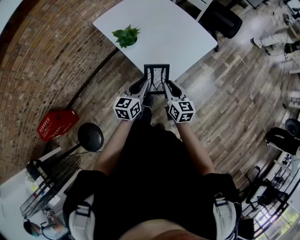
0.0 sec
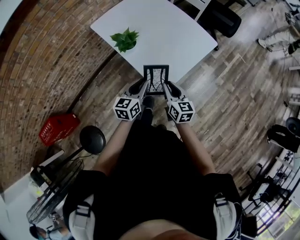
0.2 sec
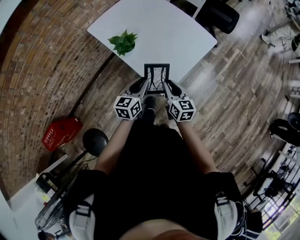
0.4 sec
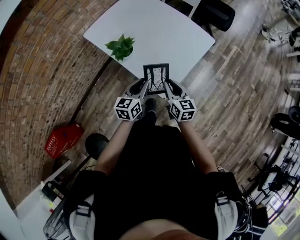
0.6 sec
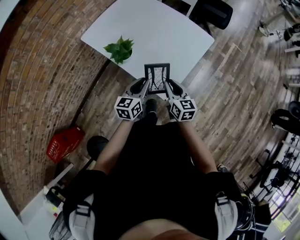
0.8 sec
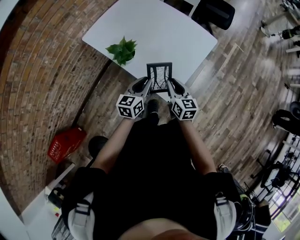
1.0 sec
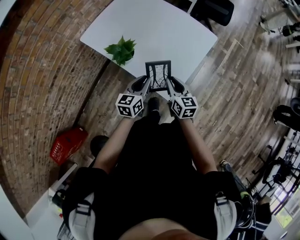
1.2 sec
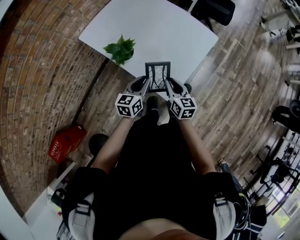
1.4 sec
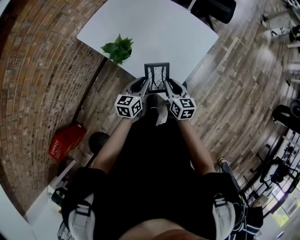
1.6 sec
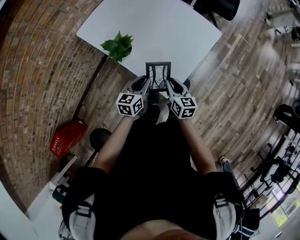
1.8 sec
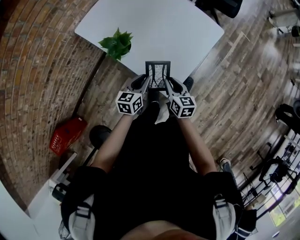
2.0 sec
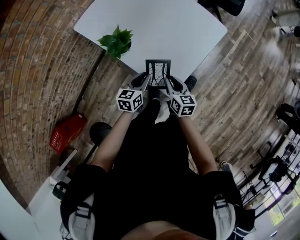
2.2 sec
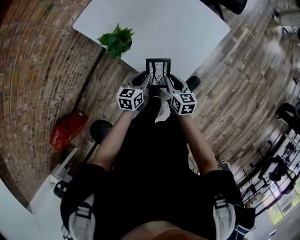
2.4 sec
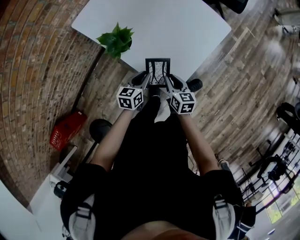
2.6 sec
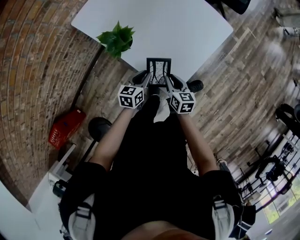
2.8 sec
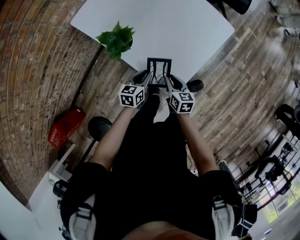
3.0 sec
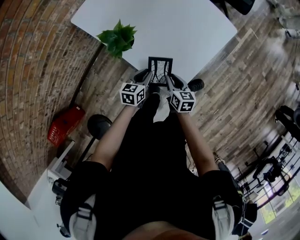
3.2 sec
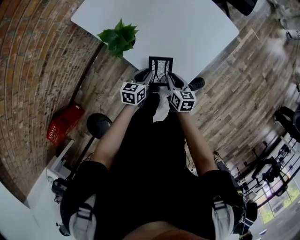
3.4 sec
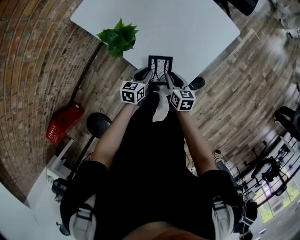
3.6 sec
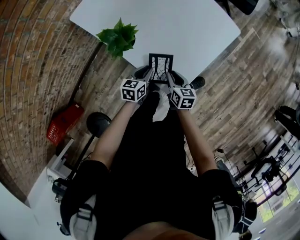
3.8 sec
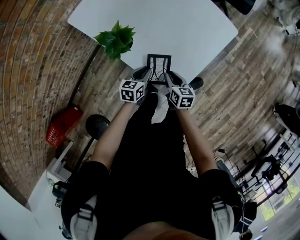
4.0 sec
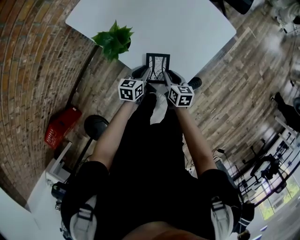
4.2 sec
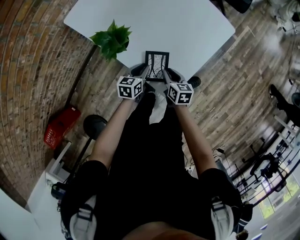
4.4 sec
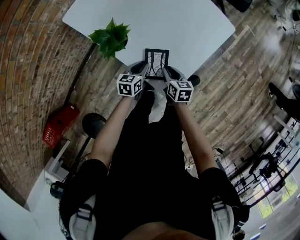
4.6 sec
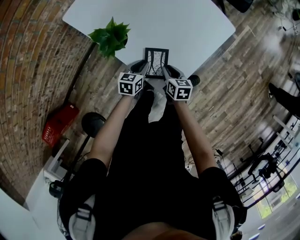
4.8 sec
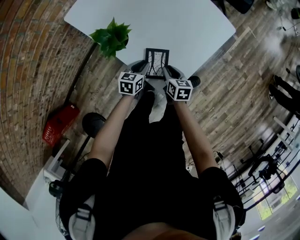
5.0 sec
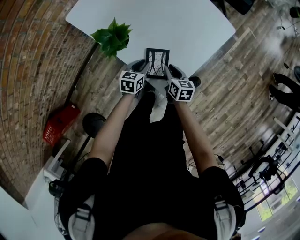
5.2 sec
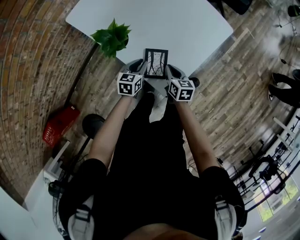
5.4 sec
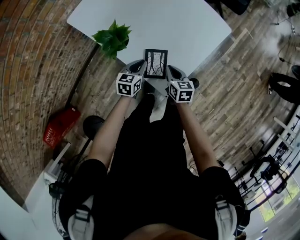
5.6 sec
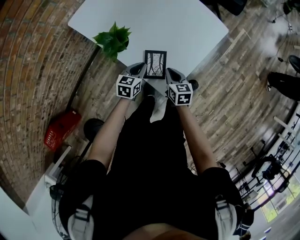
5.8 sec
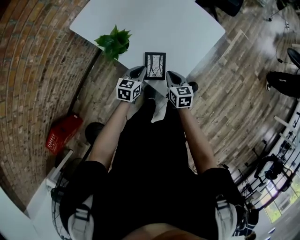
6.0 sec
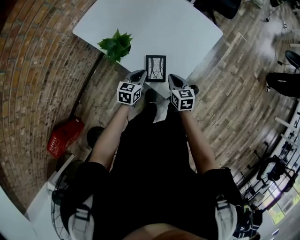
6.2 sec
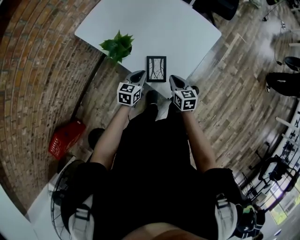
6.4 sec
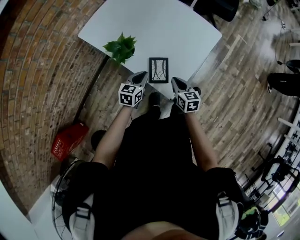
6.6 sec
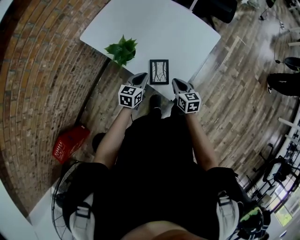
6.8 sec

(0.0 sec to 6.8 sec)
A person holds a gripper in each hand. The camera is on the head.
0.0 sec - 1.4 sec: Both grippers travel together forward and downward, some 10 cm.
1.4 sec - 2.8 sec: The grippers both shift downward by approximately 10 cm.
2.8 sec - 4.0 sec: The left gripper shifts by some 5 cm. Meanwhile the right gripper ends up about 5 cm from where it was.
4.0 sec - 5.4 sec: The grippers move only a little.
5.4 sec - 6.8 sec: The left gripper moves upward, about 10 cm, while the right gripper goes roughly 10 cm upward and backward.

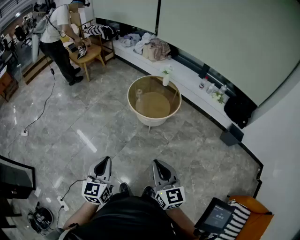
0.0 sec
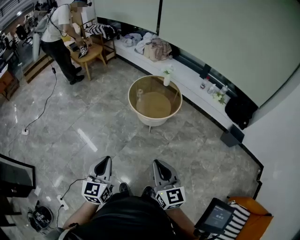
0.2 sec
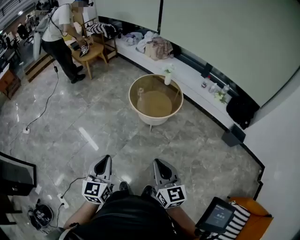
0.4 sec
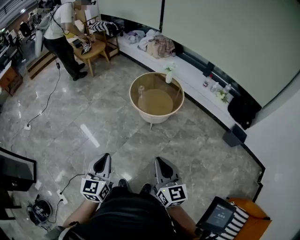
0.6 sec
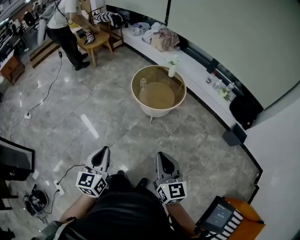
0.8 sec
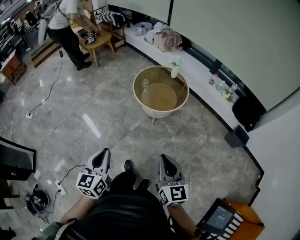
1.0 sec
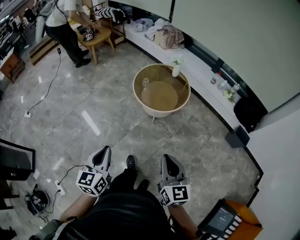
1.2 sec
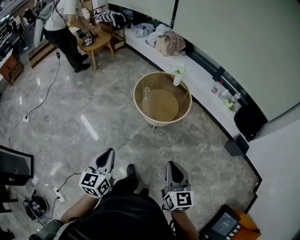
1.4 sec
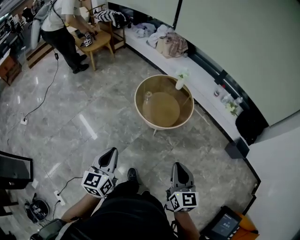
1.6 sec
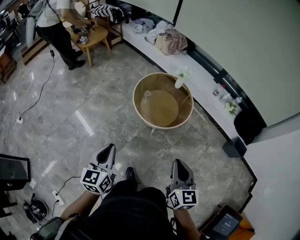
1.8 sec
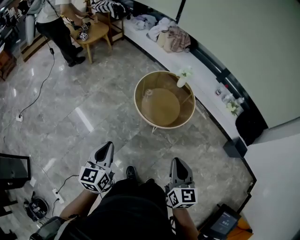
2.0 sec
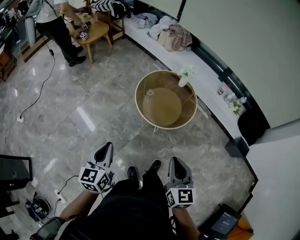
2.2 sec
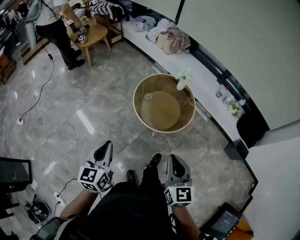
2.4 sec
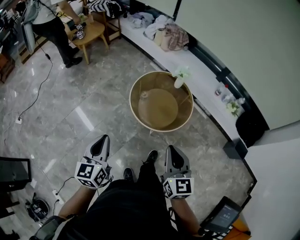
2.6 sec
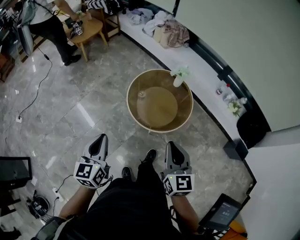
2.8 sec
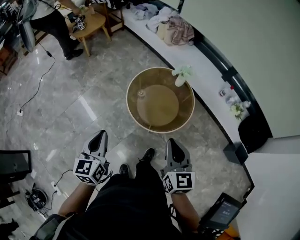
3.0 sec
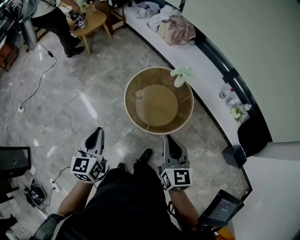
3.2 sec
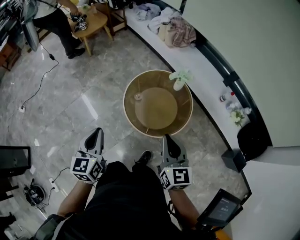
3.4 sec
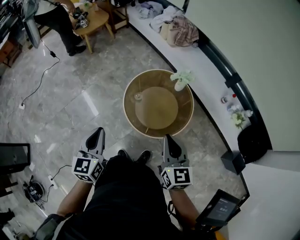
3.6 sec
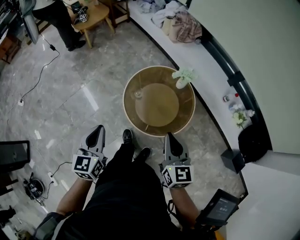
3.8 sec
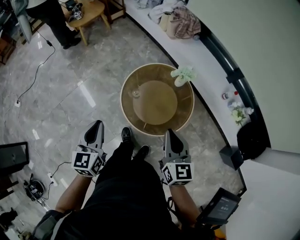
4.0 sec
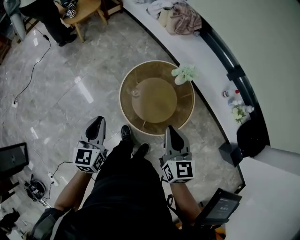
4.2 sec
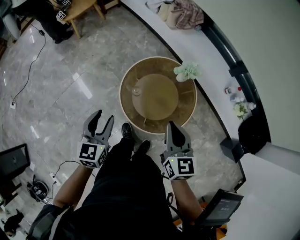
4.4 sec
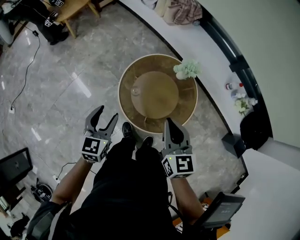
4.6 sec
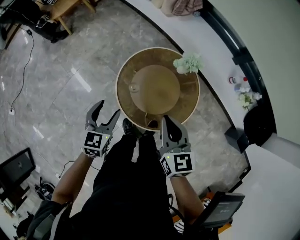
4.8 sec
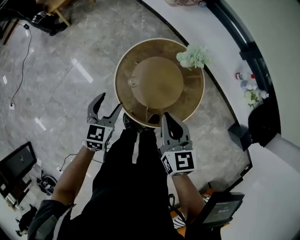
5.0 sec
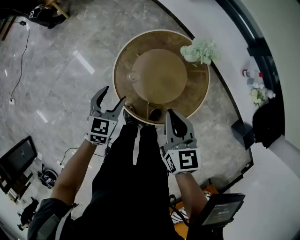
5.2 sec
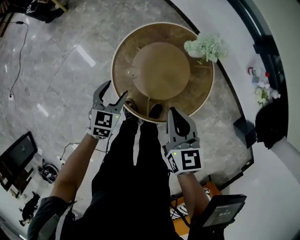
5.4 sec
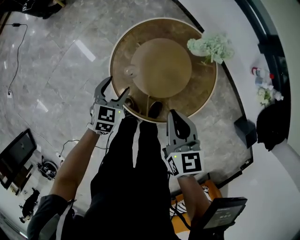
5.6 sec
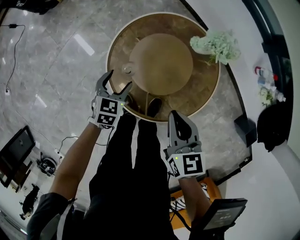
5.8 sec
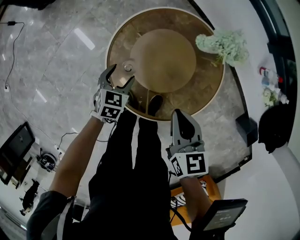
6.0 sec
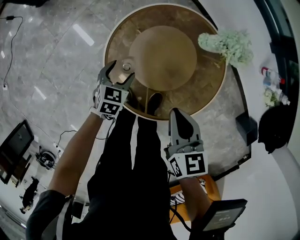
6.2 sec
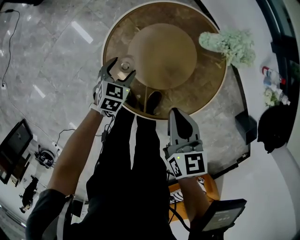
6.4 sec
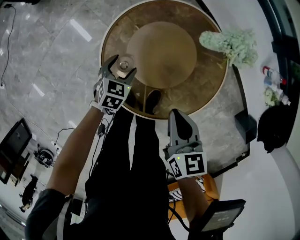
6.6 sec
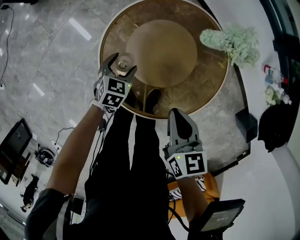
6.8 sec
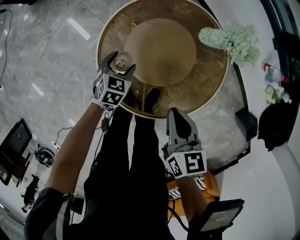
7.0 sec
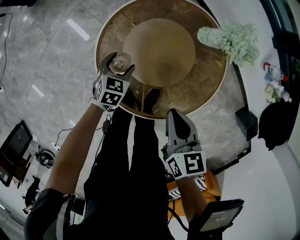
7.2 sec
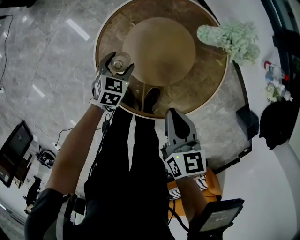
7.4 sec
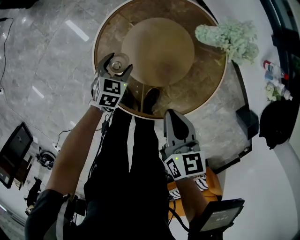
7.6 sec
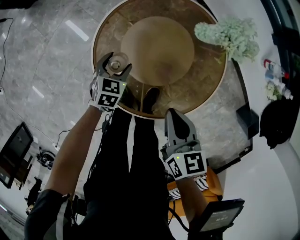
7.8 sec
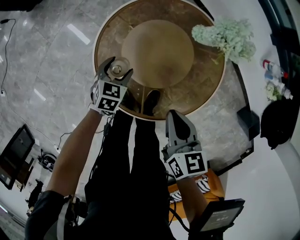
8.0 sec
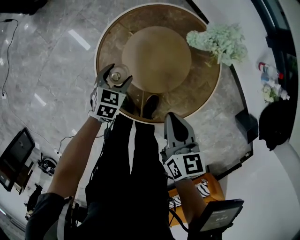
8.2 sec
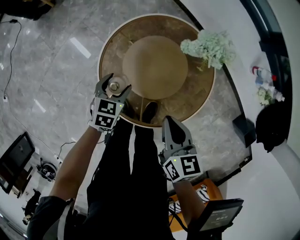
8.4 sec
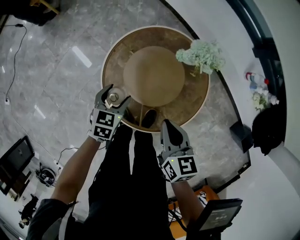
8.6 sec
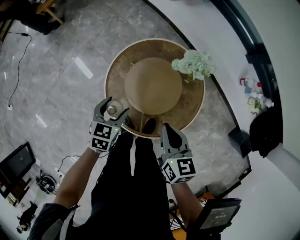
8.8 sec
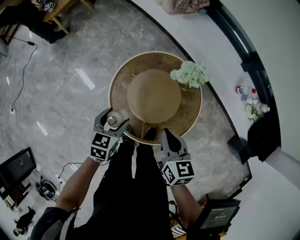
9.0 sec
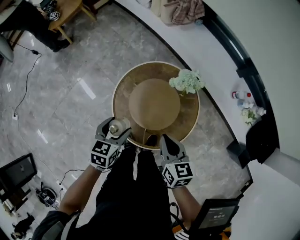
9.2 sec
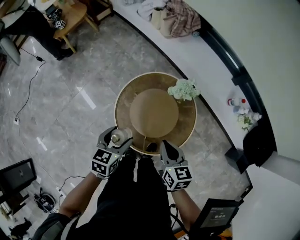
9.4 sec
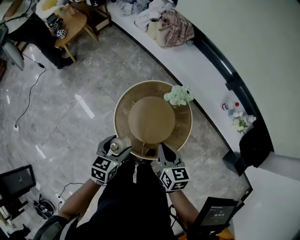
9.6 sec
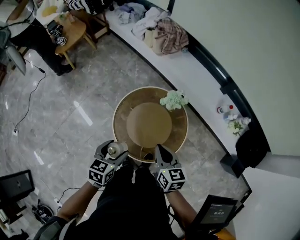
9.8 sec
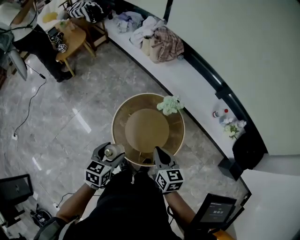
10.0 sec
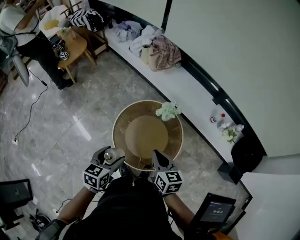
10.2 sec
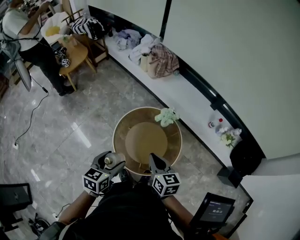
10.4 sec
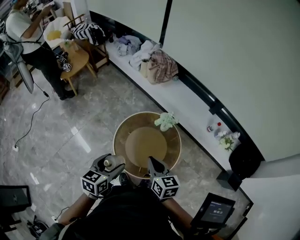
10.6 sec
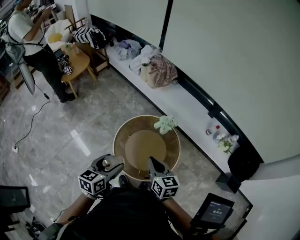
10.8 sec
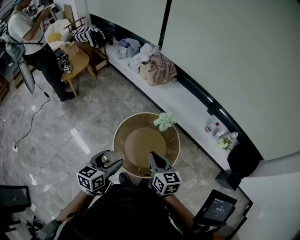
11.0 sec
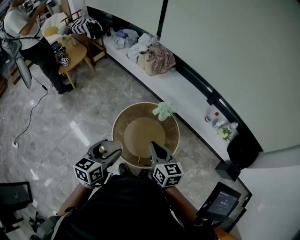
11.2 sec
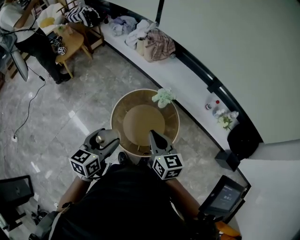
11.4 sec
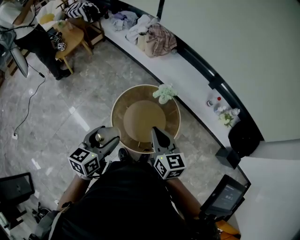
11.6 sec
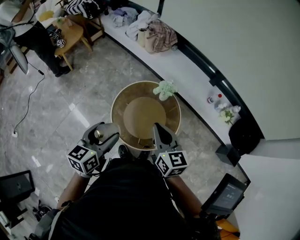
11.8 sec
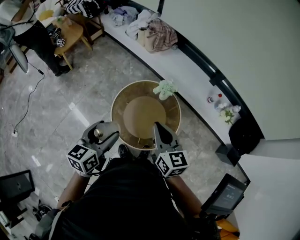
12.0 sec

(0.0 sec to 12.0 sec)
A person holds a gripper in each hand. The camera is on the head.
0.0 sec - 1.6 sec: The two grippers go approximately 20 cm forward.
1.6 sec - 3.0 sec: Both grippers travel together forward, approximately 25 cm.
3.0 sec - 4.4 sec: The left gripper goes about 20 cm forward and downward, and opens up. The right gripper travels forward by approximately 20 cm.
4.4 sec - 6.0 sec: The right gripper travels downward by some 25 cm, and changes its angle by approximately 20 degrees; the left gripper goes roughly 40 cm downward, swivels approximately 30 degrees, and opens its fingers.
6.0 sec - 7.6 sec: Both grippers move downward, some 5 cm.
7.6 sec - 9.0 sec: The right gripper travels upward by approximately 15 cm. The left gripper is displaced upward by some 25 cm.
9.0 sec - 10.4 sec: The right gripper is displaced upward by about 15 cm. Meanwhile the left gripper goes about 25 cm upward and backward.
10.4 sec - 12.0 sec: The grippers both shift upward by some 10 cm.

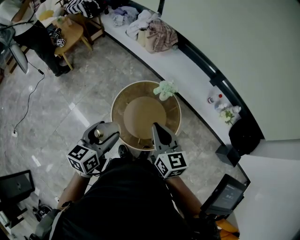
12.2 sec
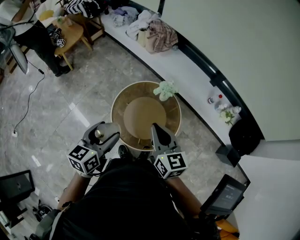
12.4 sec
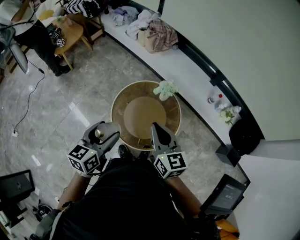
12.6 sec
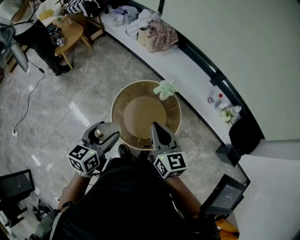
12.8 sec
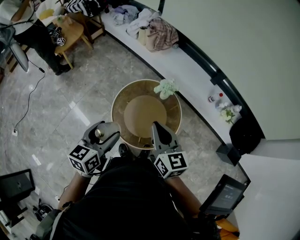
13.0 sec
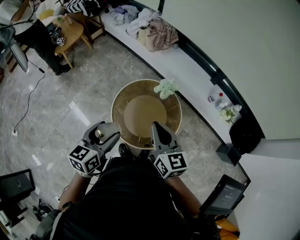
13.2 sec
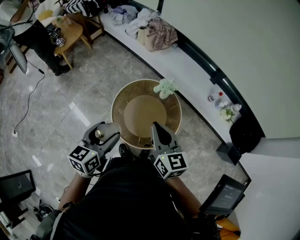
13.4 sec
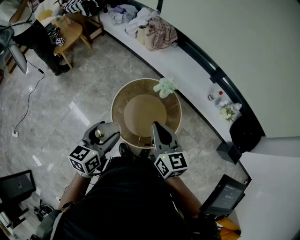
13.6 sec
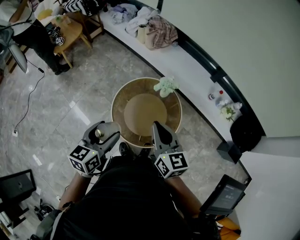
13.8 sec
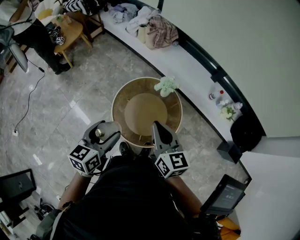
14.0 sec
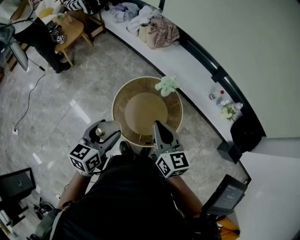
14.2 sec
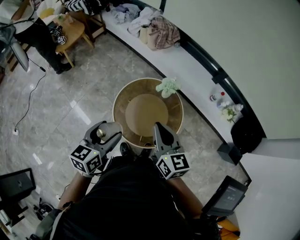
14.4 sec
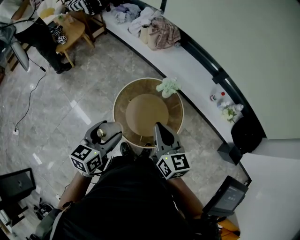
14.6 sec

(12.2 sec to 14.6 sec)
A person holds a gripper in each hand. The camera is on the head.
12.2 sec - 14.6 sec: Both grippers stay put.

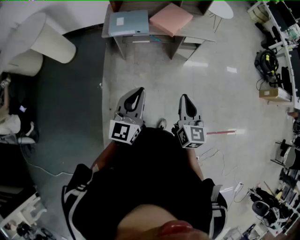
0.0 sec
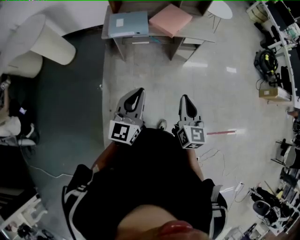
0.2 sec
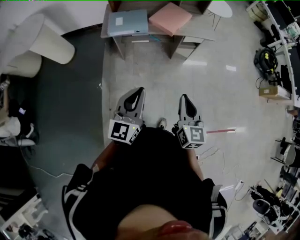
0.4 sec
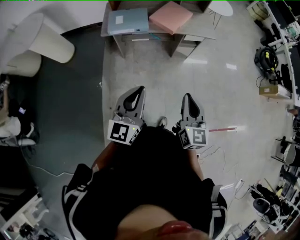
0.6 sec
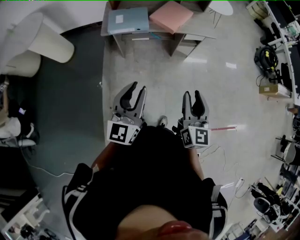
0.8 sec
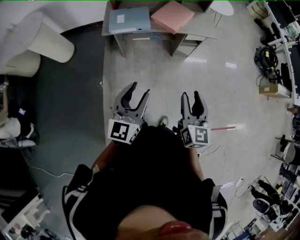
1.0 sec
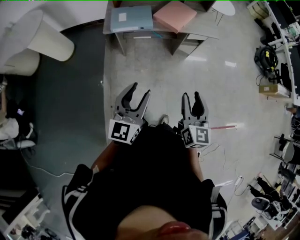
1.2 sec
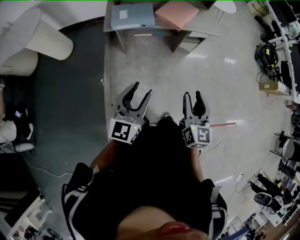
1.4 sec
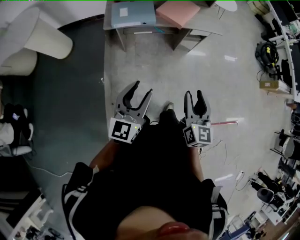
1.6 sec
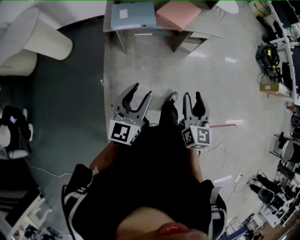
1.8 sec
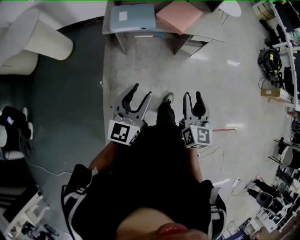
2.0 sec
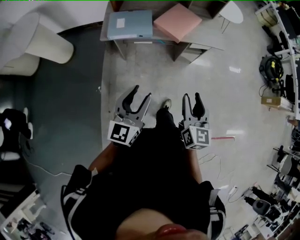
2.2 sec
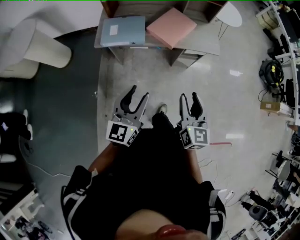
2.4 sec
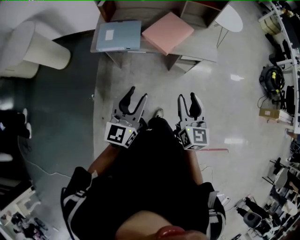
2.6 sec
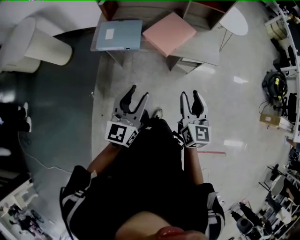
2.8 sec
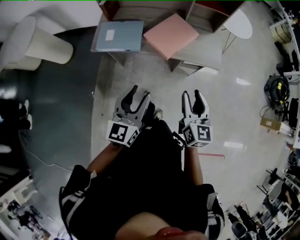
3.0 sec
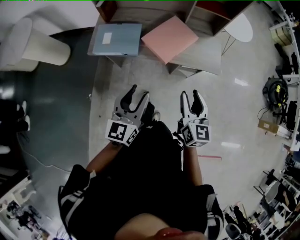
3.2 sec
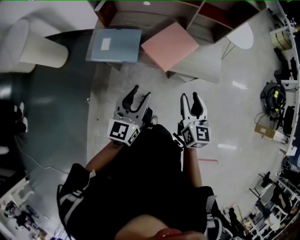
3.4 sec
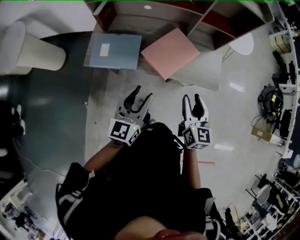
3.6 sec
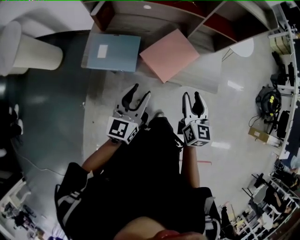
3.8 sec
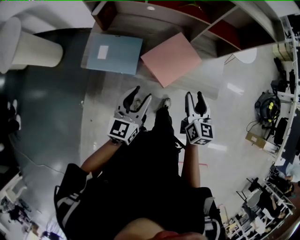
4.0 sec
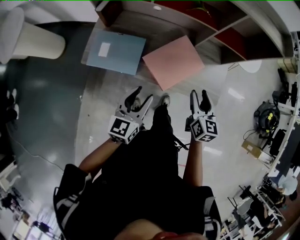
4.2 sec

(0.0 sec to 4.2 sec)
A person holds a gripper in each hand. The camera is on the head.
0.0 sec - 1.4 sec: Both grippers travel together to the left, approximately 5 cm. The right gripper opens; the left gripper opens its fingers.
1.4 sec - 2.8 sec: Both grippers travel together forward and to the right, roughly 25 cm.
2.8 sec - 4.2 sec: The right gripper shifts about 30 cm forward. Meanwhile the left gripper travels forward and downward by about 25 cm.
